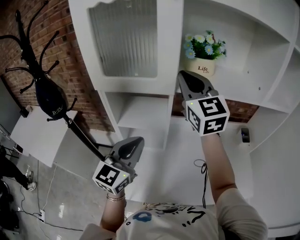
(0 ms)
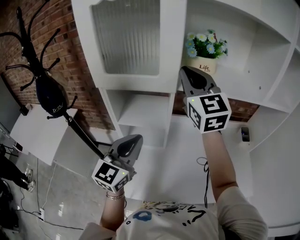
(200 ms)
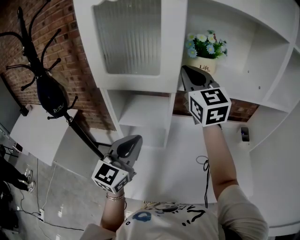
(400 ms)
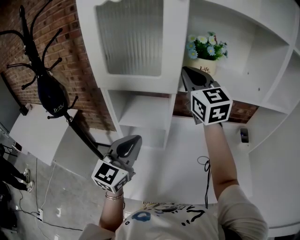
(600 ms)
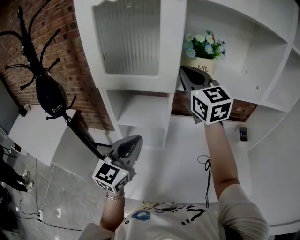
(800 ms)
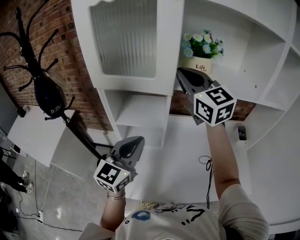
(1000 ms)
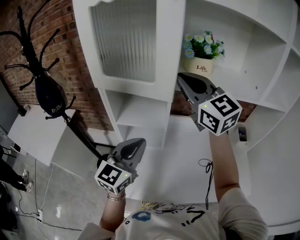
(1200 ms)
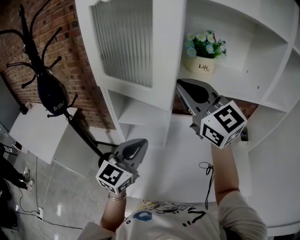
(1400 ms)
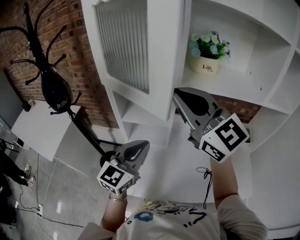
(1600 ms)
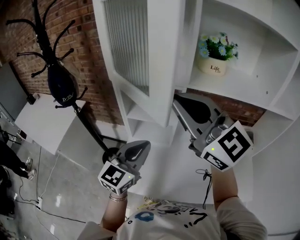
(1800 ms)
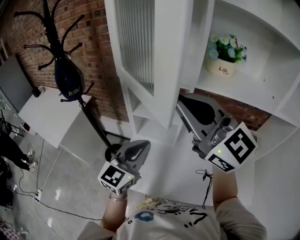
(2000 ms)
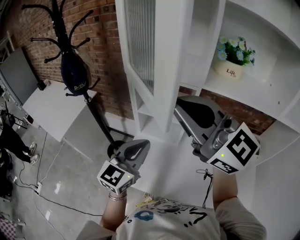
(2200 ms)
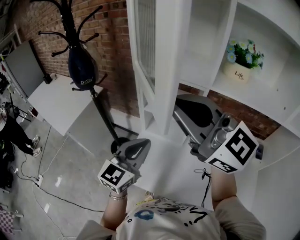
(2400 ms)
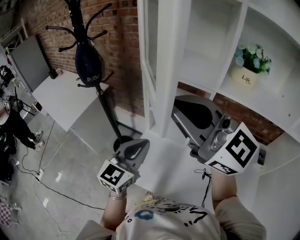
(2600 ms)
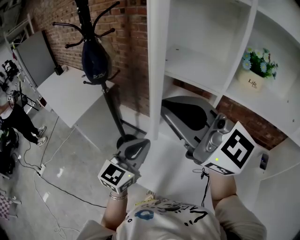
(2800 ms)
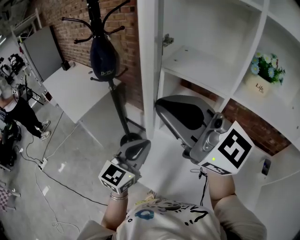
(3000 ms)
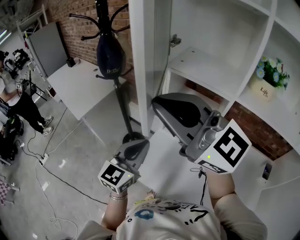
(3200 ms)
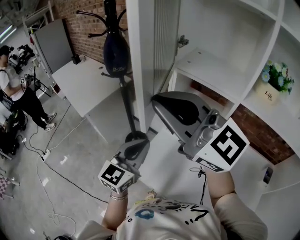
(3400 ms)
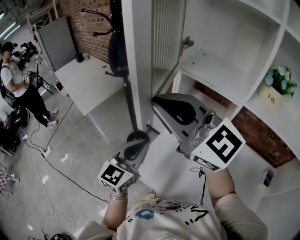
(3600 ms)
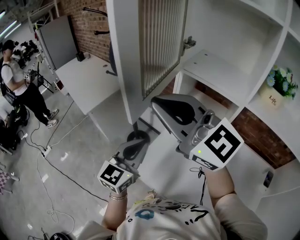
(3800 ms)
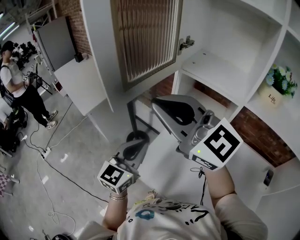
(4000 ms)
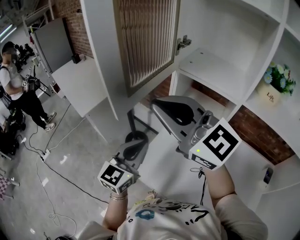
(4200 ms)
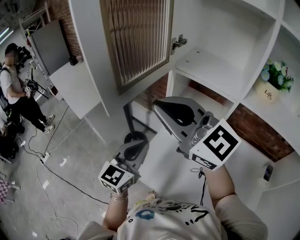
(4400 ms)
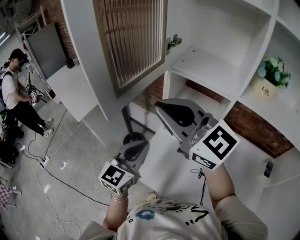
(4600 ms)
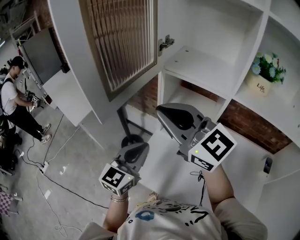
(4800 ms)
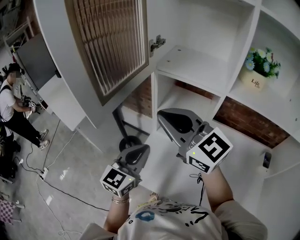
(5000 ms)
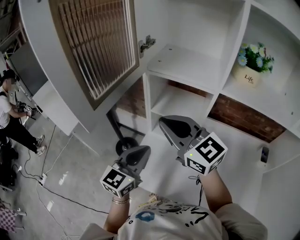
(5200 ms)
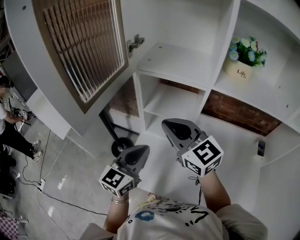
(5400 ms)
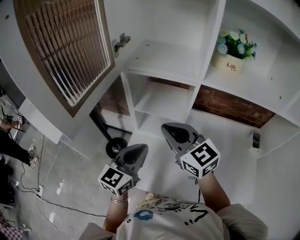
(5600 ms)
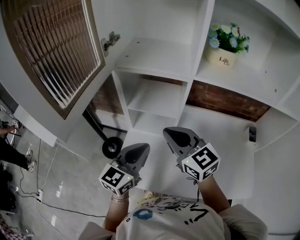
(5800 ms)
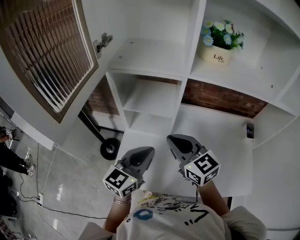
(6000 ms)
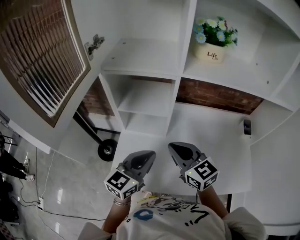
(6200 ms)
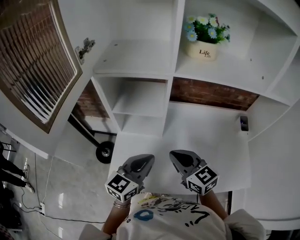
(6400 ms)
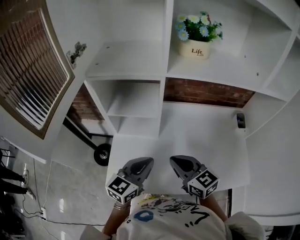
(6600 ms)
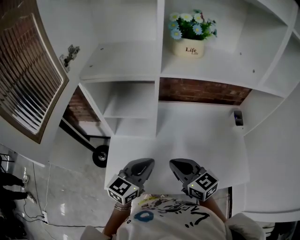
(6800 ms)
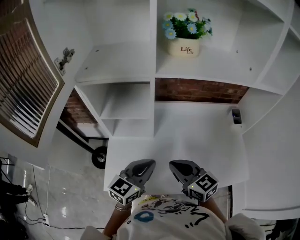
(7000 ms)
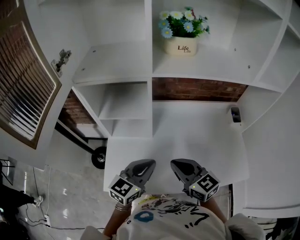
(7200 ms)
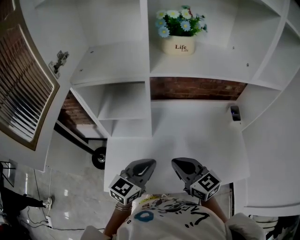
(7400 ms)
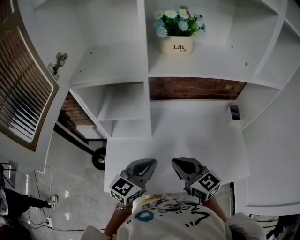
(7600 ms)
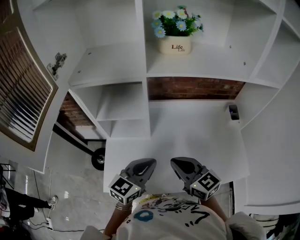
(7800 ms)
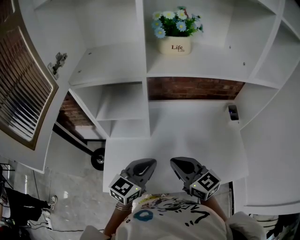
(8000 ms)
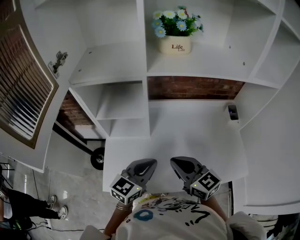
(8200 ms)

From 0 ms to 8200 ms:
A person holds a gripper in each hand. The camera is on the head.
From 0 ms to 1600 ms: The right gripper moves backward and to the left, roughly 15 cm, and rotates approximately 30 degrees.
From 1600 ms to 3200 ms: The left gripper ends up some 15 cm from where it was, and swivels some 30 degrees. The right gripper changes place by about 20 cm, and turns by approximately 40 degrees.
From 3200 ms to 5000 ms: The right gripper is displaced downward by about 10 cm.
From 5000 ms to 6600 ms: The right gripper shifts about 20 cm downward, and swivels approximately 40 degrees. The left gripper changes place by approximately 15 cm, and turns by some 30 degrees.
From 6600 ms to 8200 ms: The left gripper travels to the right by approximately 5 cm.

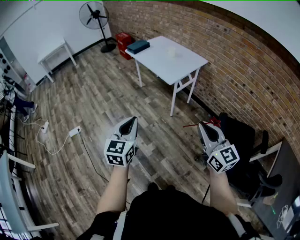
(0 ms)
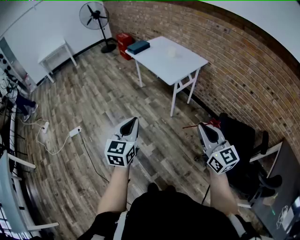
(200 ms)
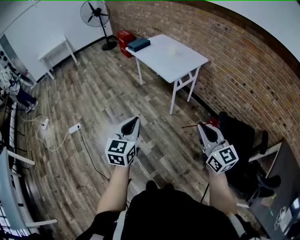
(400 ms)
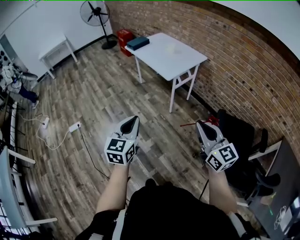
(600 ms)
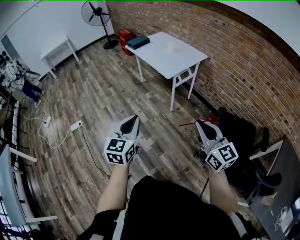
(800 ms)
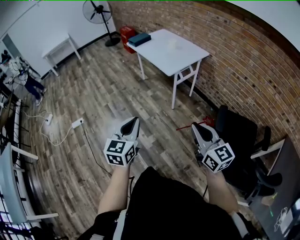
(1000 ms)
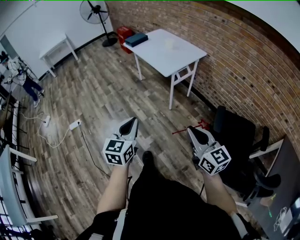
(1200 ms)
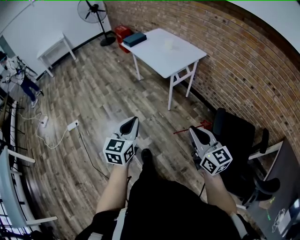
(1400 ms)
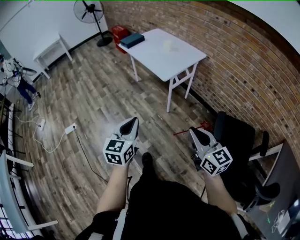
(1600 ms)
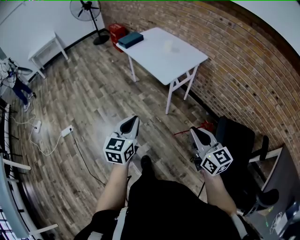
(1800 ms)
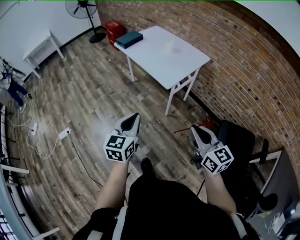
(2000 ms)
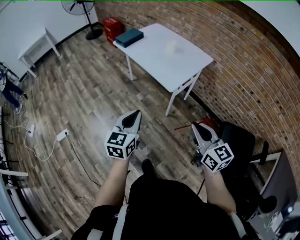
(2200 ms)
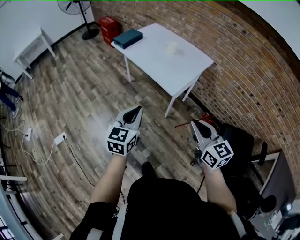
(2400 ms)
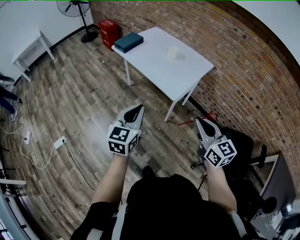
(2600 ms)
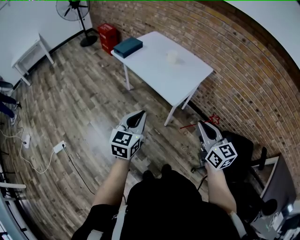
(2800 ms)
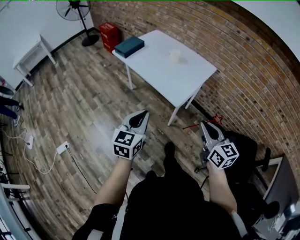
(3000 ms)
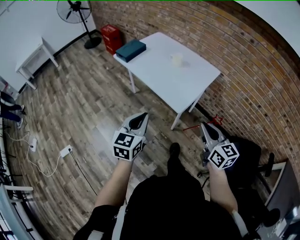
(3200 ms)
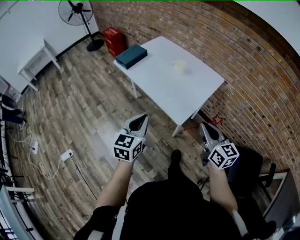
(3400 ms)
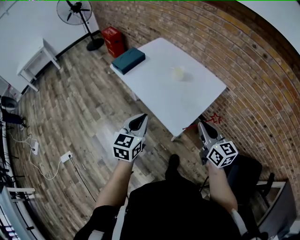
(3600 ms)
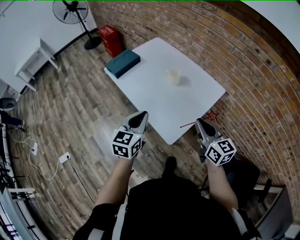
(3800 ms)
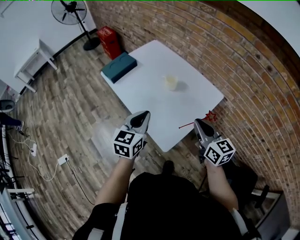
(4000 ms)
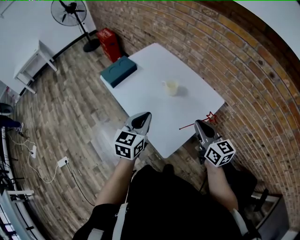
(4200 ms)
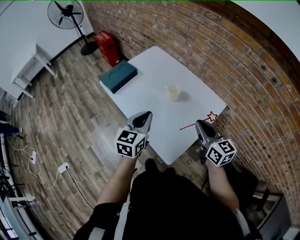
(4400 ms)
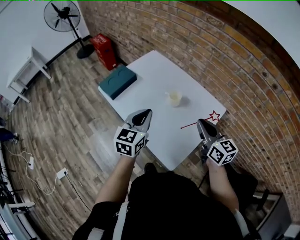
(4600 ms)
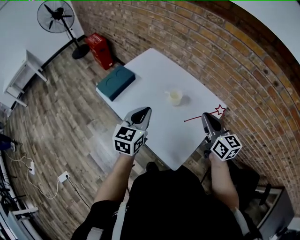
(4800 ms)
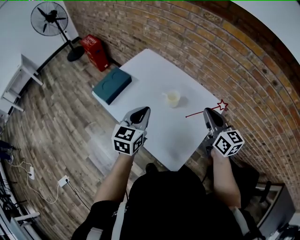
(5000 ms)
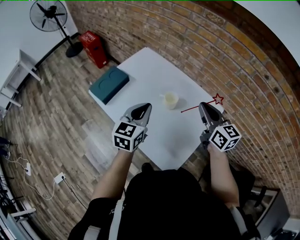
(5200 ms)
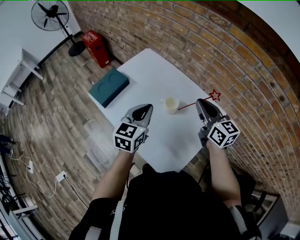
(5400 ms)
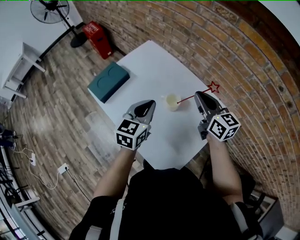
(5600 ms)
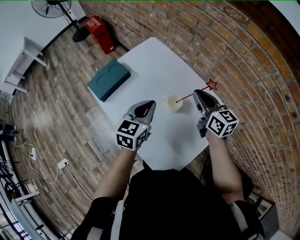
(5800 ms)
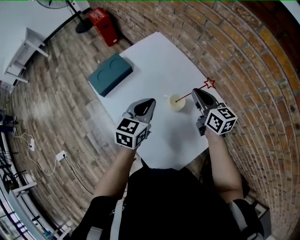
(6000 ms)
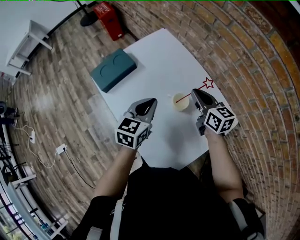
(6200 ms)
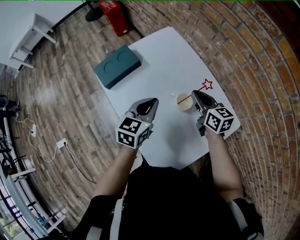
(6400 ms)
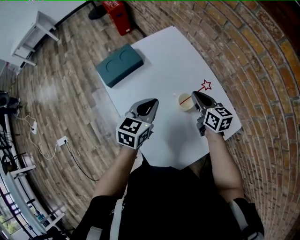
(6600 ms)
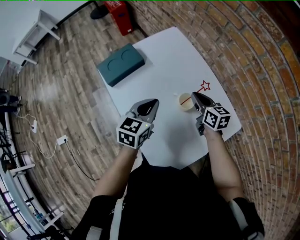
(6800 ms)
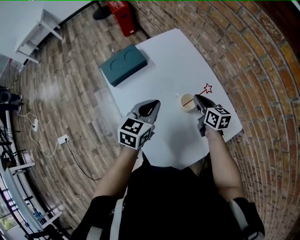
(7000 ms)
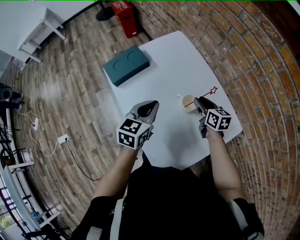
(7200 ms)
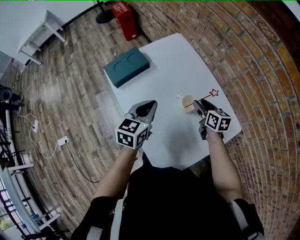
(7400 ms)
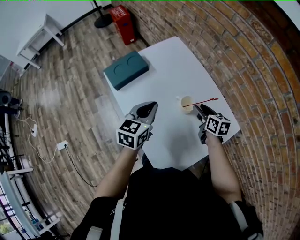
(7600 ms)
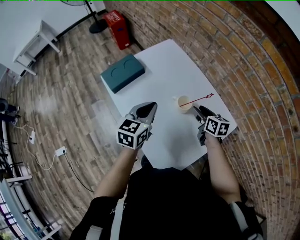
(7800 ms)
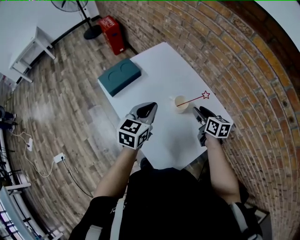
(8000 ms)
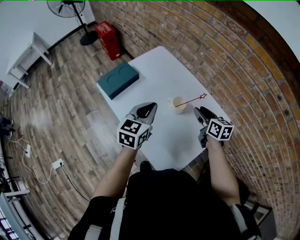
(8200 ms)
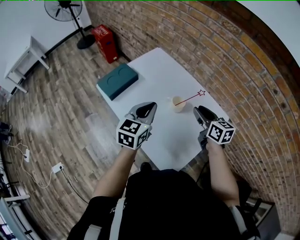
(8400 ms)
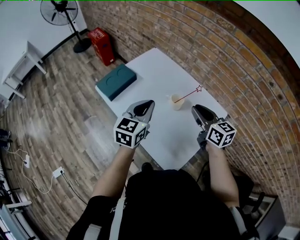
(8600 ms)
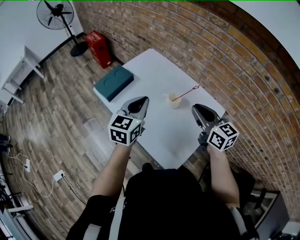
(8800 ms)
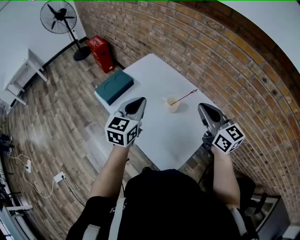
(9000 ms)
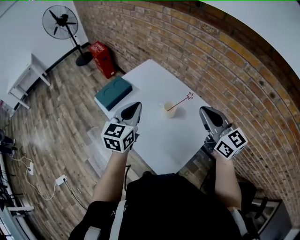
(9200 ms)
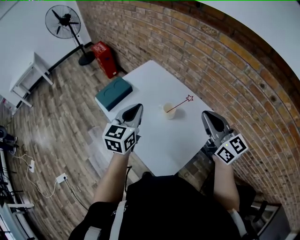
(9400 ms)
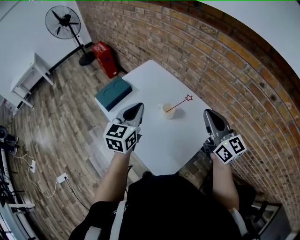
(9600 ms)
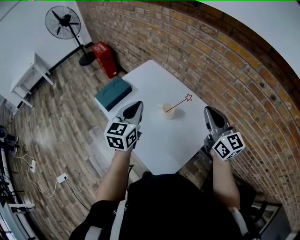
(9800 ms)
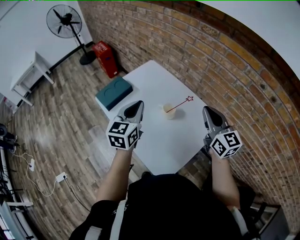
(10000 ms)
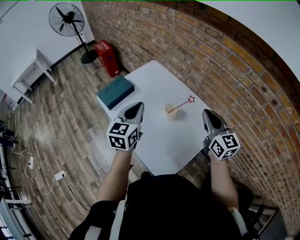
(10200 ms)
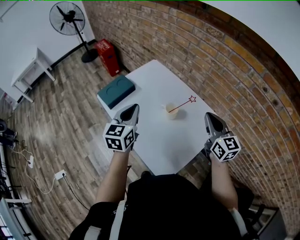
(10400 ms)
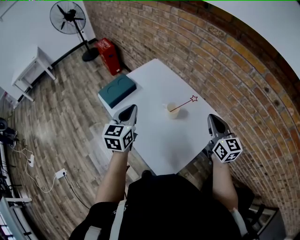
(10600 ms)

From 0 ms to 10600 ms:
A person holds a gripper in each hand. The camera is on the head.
From 0 ms to 1600 ms: The left gripper travels to the right and downward by roughly 10 cm, while the right gripper is displaced downward by roughly 5 cm.
From 1600 ms to 3000 ms: Both grippers travel together forward, approximately 30 cm.
From 3000 ms to 4600 ms: Both grippers are carried forward, some 40 cm.
From 4600 ms to 6000 ms: The left gripper heads forward and downward, covering approximately 15 cm, while the right gripper is displaced forward by about 25 cm.
From 6000 ms to 7600 ms: The left gripper changes place by some 5 cm. The right gripper moves downward, about 10 cm, and opens.
From 7600 ms to 9000 ms: The right gripper heads upward and backward, covering roughly 30 cm, turns by about 40 degrees, and closes. Meanwhile the left gripper travels upward by approximately 10 cm.
From 9000 ms to 10600 ms: The right gripper heads to the right, covering about 10 cm.

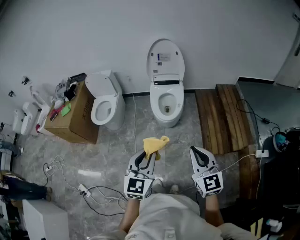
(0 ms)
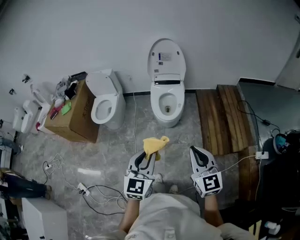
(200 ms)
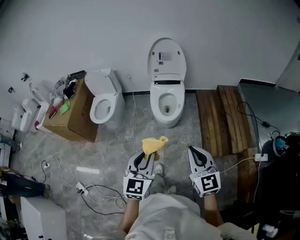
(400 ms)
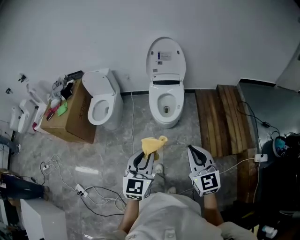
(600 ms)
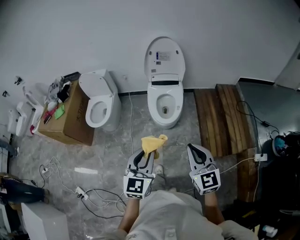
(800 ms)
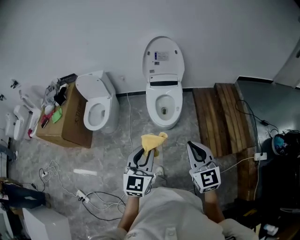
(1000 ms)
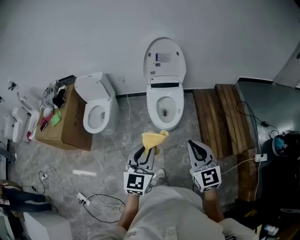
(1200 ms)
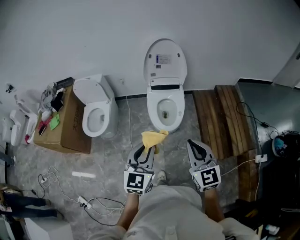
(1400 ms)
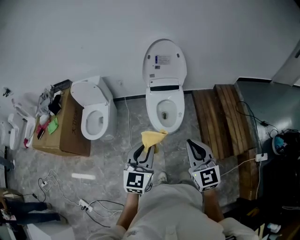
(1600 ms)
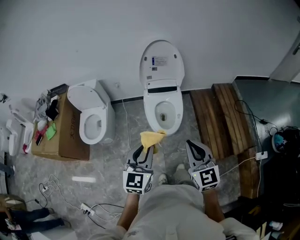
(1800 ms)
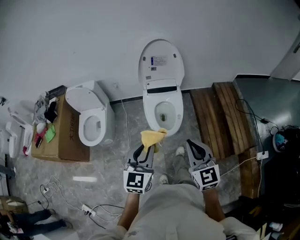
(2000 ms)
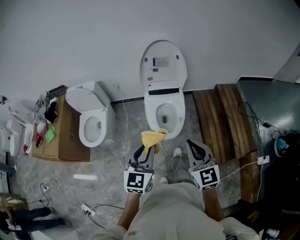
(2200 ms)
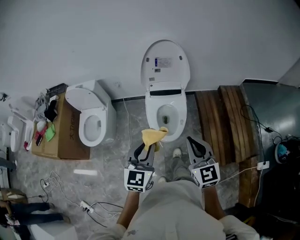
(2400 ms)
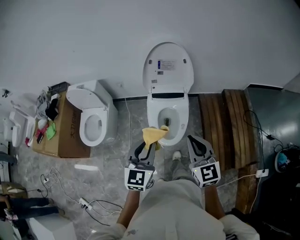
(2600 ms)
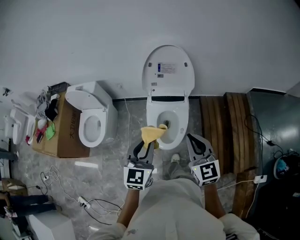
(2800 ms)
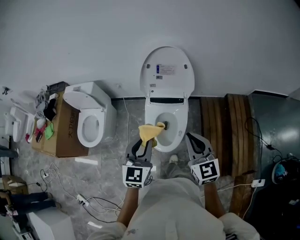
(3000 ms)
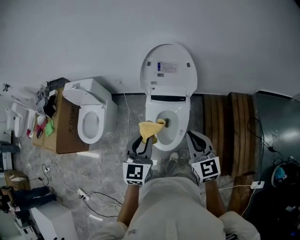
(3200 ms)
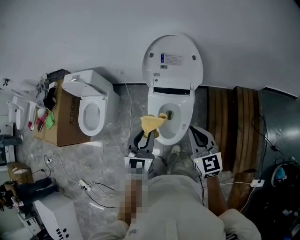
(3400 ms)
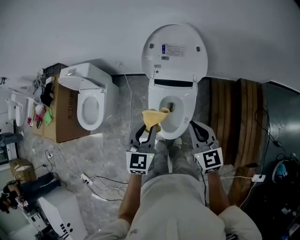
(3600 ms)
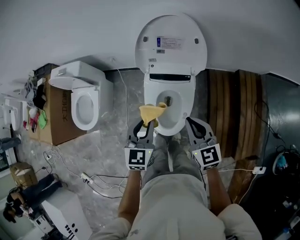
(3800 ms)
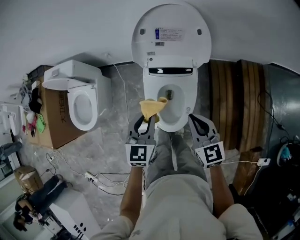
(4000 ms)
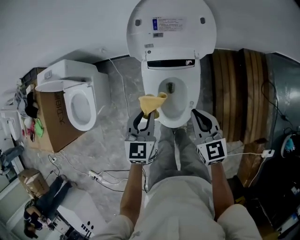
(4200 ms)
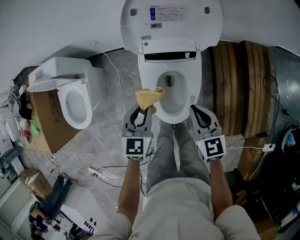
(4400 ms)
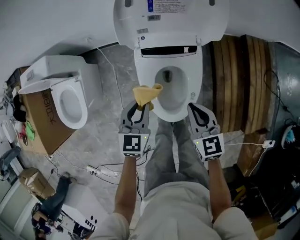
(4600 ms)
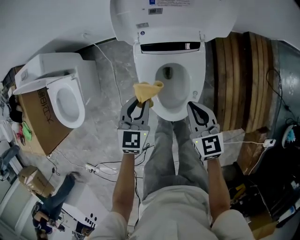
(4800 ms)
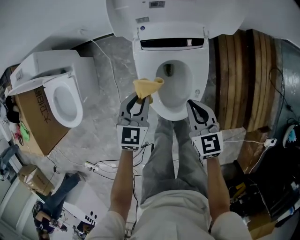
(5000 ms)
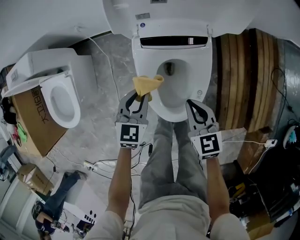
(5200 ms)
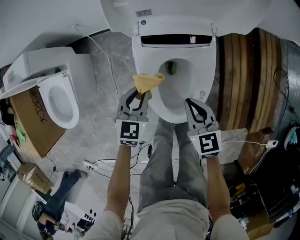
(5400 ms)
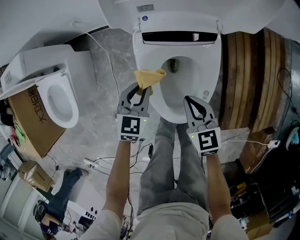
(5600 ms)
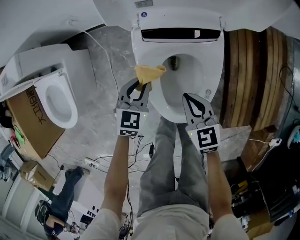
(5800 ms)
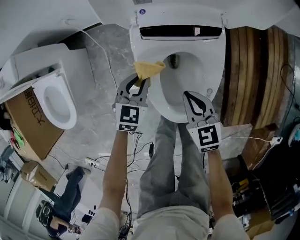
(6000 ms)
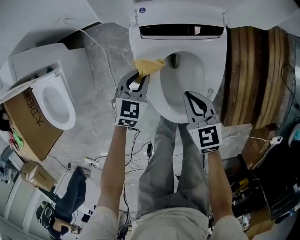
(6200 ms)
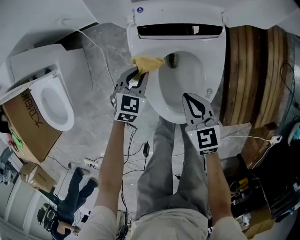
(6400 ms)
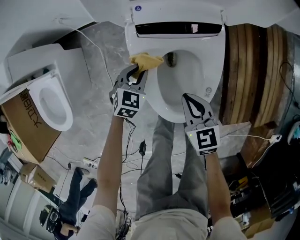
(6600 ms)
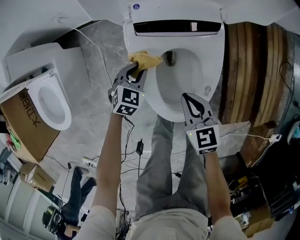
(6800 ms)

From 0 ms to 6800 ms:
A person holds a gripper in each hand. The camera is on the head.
From 0 ms to 1400 ms: The two grippers go some 20 cm forward.
From 1400 ms to 2800 ms: Both grippers travel together forward, approximately 30 cm.
From 2800 ms to 4000 ms: Both grippers move downward and forward, some 25 cm.
From 4000 ms to 5400 ms: Both grippers move downward, approximately 25 cm.
From 5400 ms to 6800 ms: The right gripper is displaced downward by approximately 10 cm, while the left gripper travels downward by about 15 cm, and rotates some 20 degrees.
